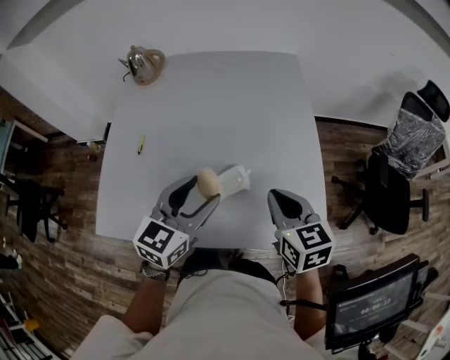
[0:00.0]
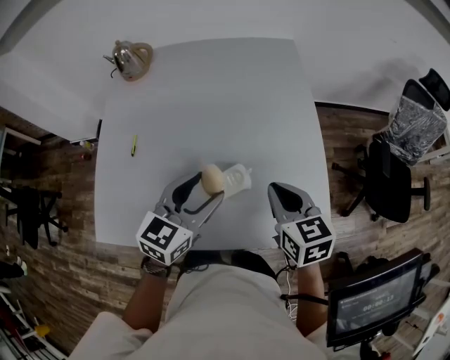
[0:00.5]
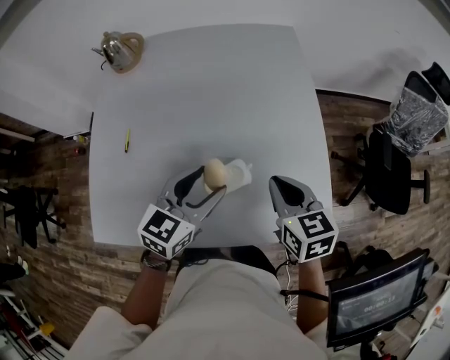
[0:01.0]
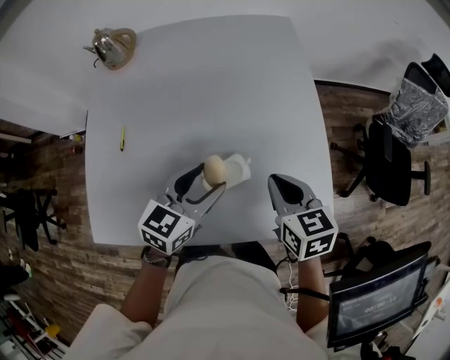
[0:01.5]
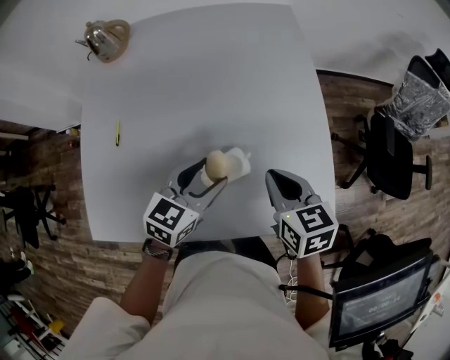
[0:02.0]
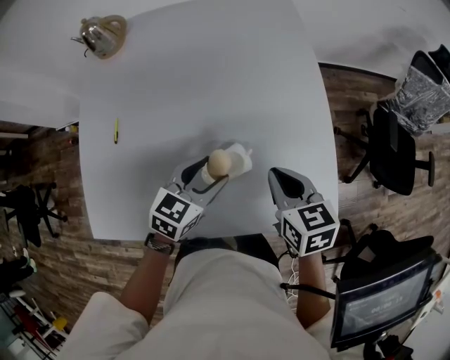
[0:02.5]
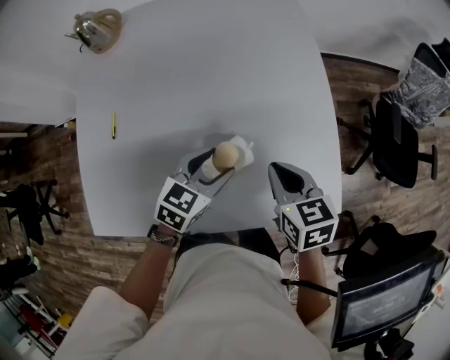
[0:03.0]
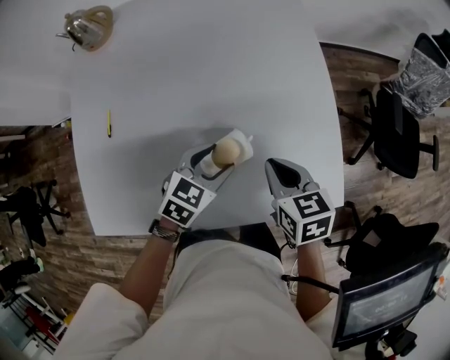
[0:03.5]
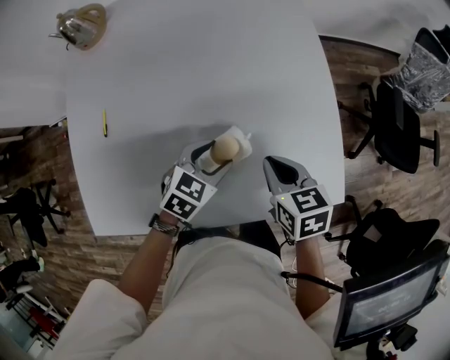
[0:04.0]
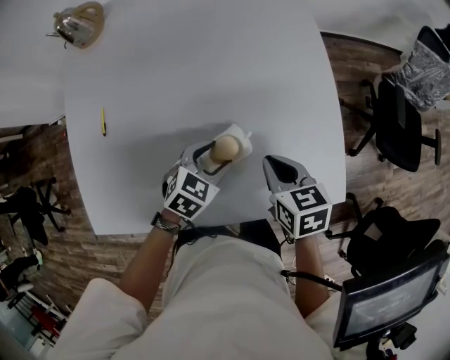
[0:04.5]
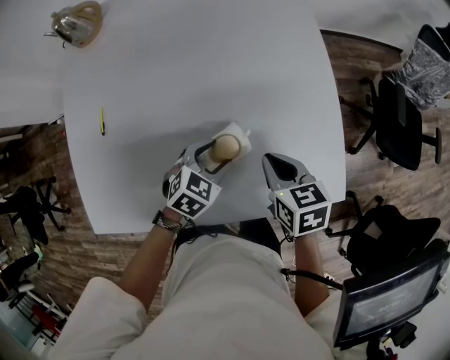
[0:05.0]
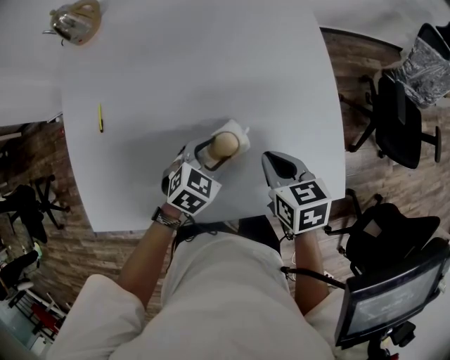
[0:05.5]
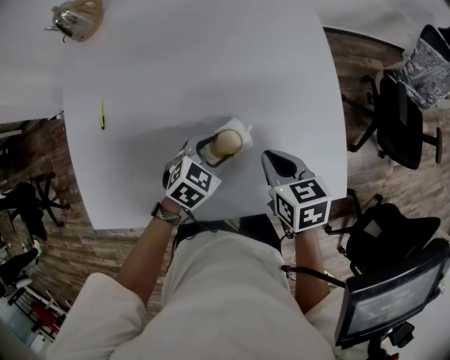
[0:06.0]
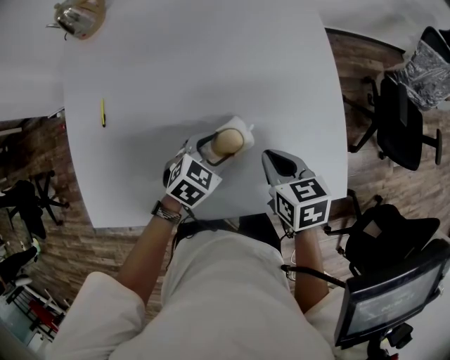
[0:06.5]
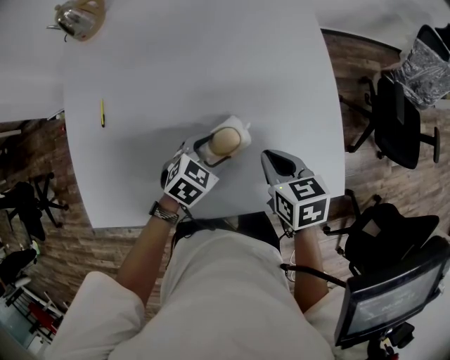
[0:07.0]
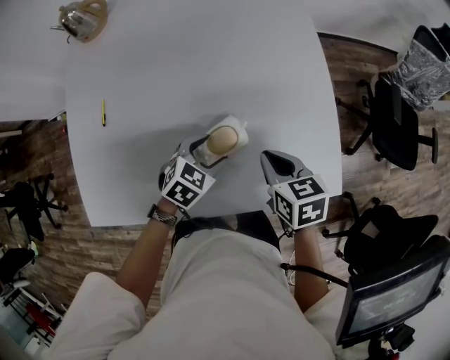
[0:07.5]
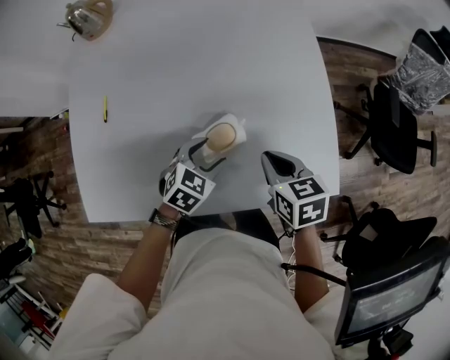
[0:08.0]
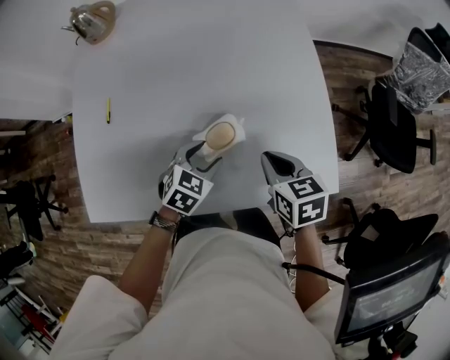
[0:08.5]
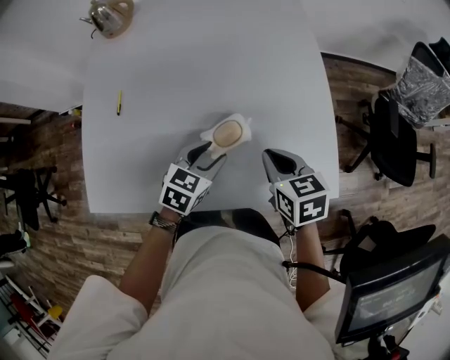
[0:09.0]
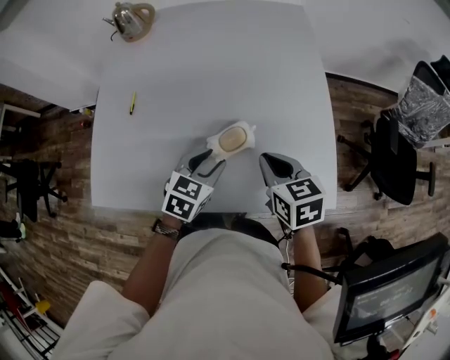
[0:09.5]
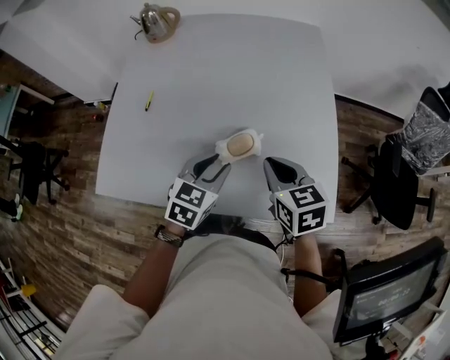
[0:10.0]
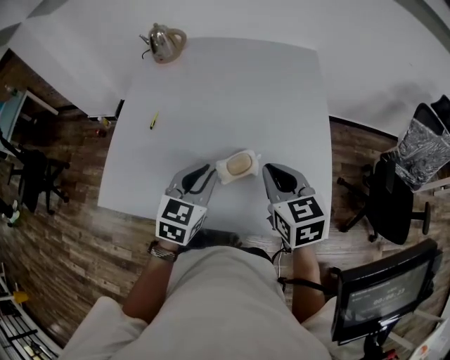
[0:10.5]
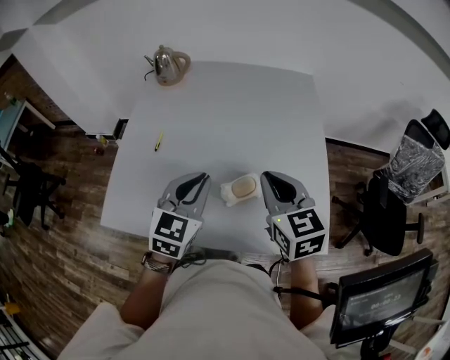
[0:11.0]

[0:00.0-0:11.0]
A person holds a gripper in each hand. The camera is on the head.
0:00.0 to 0:02.0: The right gripper travels downward by approximately 5 cm; the left gripper goes roughly 10 cm downward and forward.
0:02.0 to 0:03.5: The left gripper heads downward, covering roughly 5 cm.
0:03.5 to 0:05.5: The left gripper goes approximately 5 cm downward.
0:05.5 to 0:07.5: The grippers make only small movements.
0:07.5 to 0:09.0: The left gripper heads upward, covering about 5 cm.
0:09.0 to 0:11.0: The grippers both shift upward by about 15 cm. The left gripper turns by about 30 degrees, and closes its fingers. Meanwhile the right gripper turns by about 30 degrees.

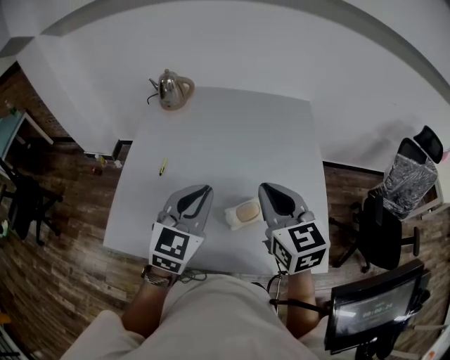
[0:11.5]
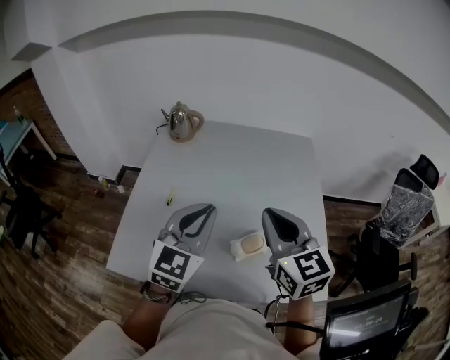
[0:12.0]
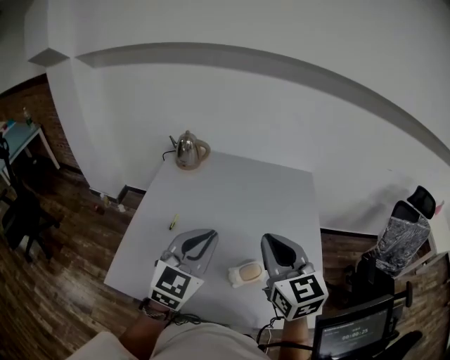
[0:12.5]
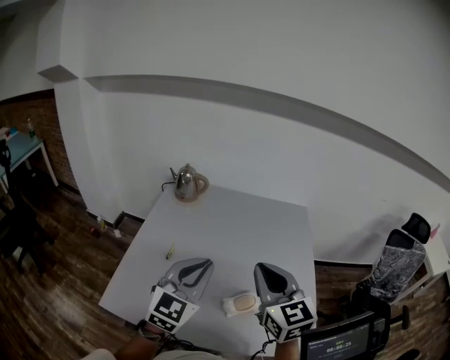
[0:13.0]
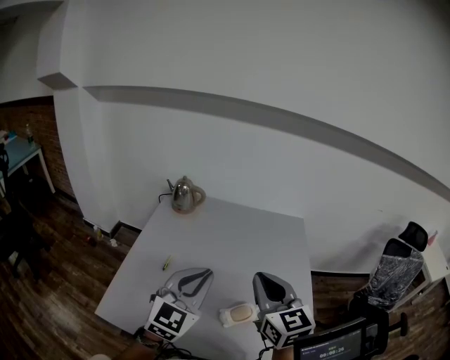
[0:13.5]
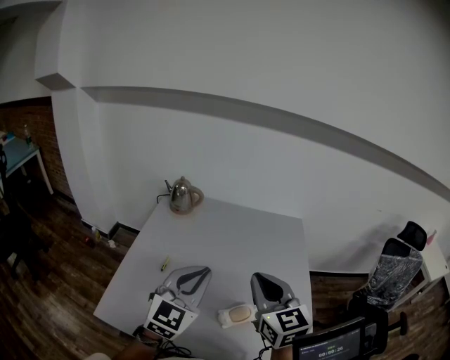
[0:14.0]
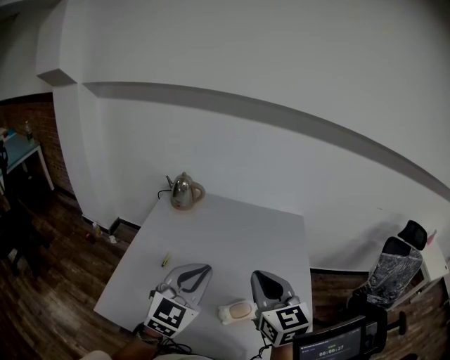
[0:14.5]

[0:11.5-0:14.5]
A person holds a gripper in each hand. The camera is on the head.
0:11.5 to 0:13.0: Both grippers travel together upward, some 5 cm.
0:13.0 to 0:14.5: The grippers make only small movements.

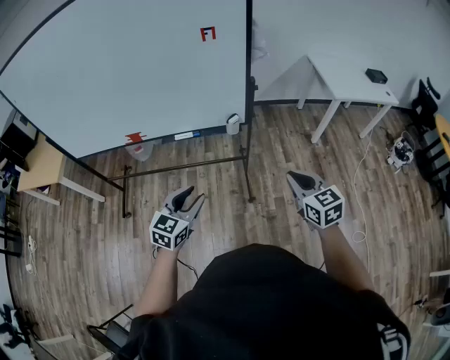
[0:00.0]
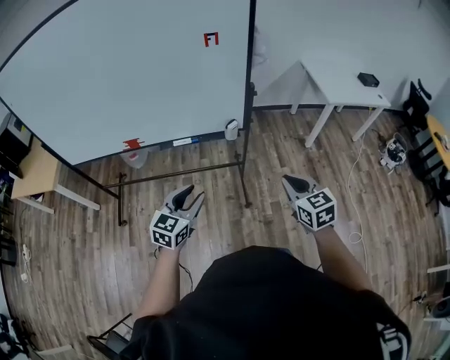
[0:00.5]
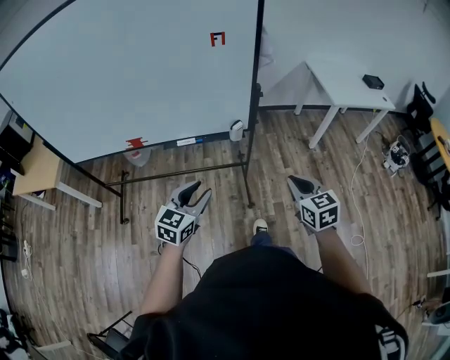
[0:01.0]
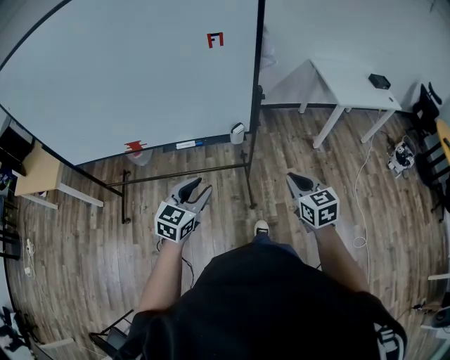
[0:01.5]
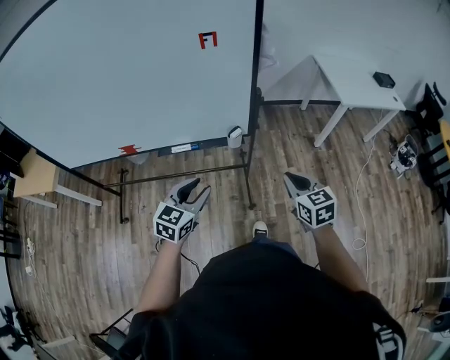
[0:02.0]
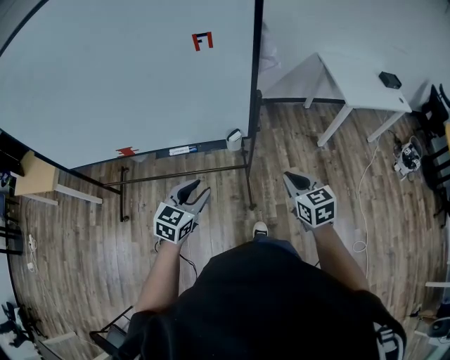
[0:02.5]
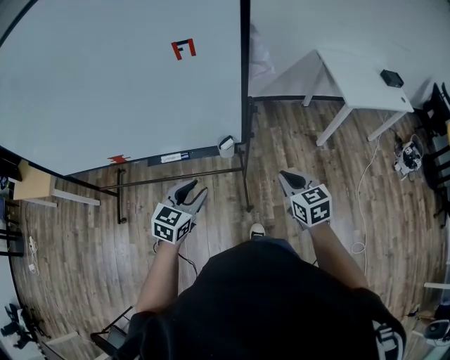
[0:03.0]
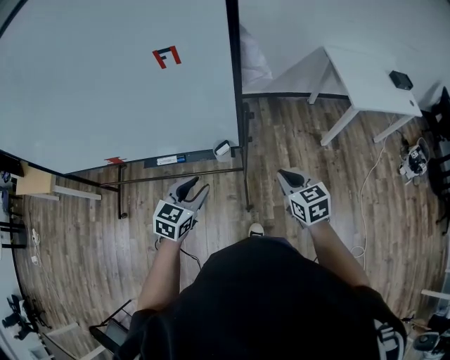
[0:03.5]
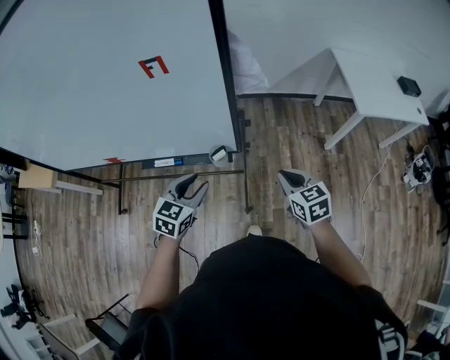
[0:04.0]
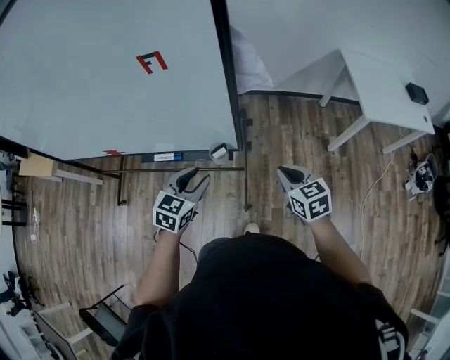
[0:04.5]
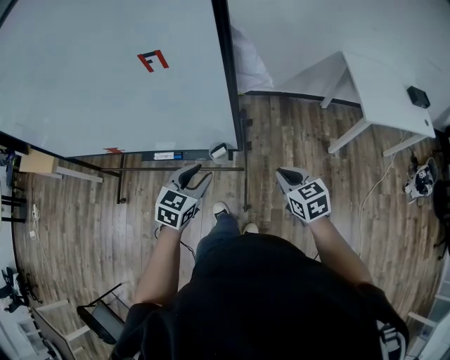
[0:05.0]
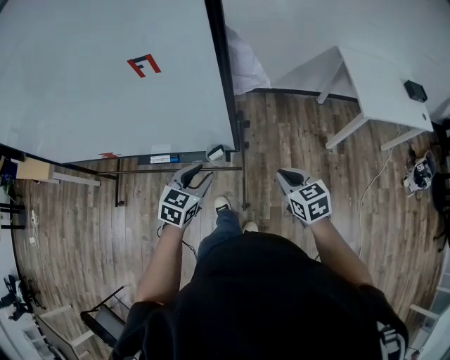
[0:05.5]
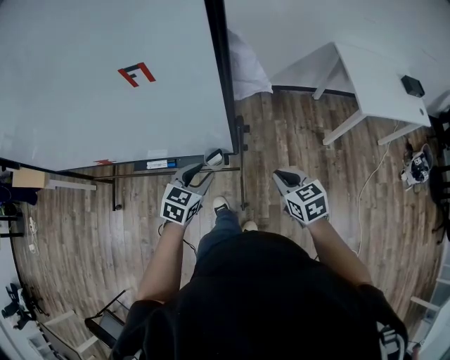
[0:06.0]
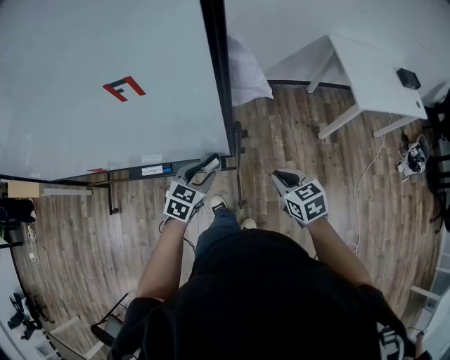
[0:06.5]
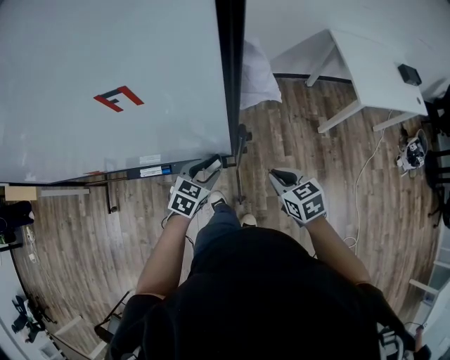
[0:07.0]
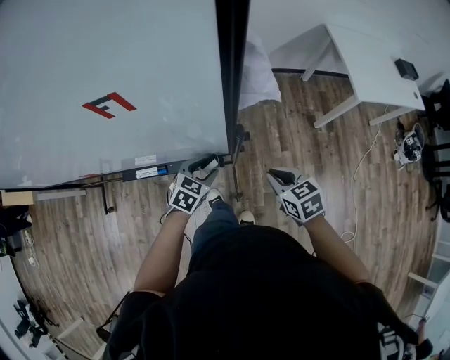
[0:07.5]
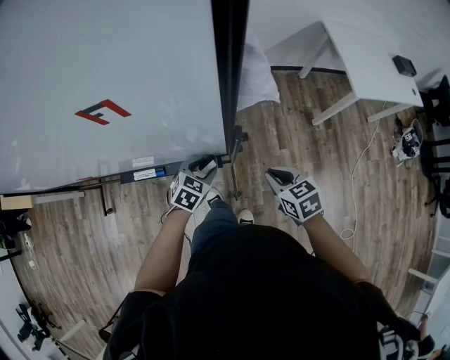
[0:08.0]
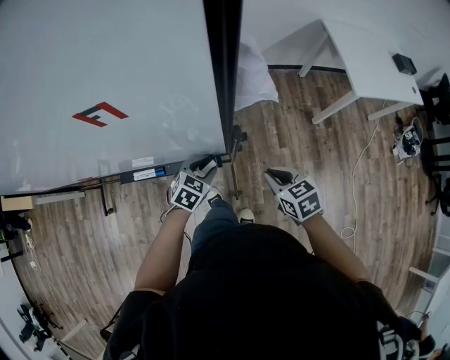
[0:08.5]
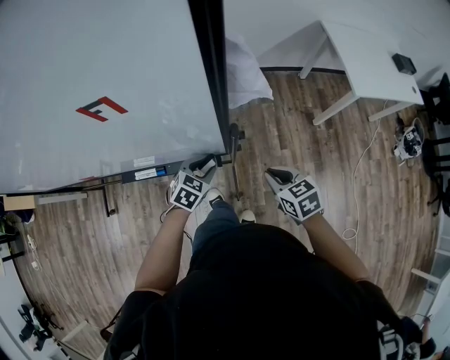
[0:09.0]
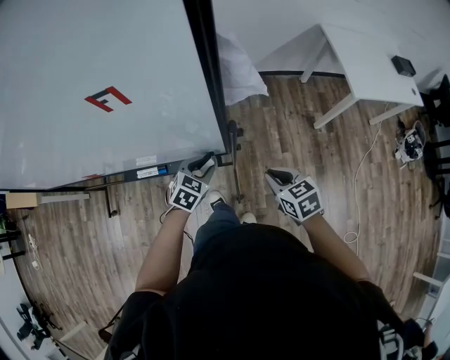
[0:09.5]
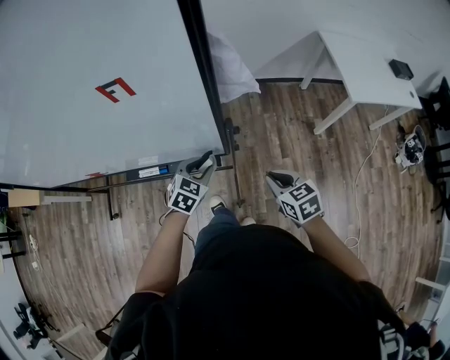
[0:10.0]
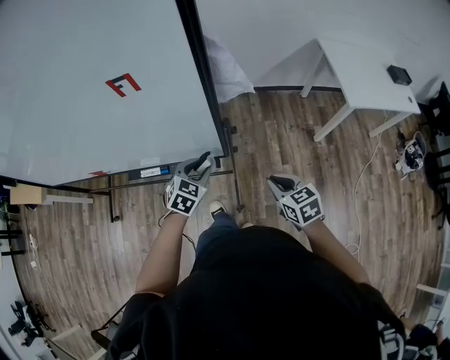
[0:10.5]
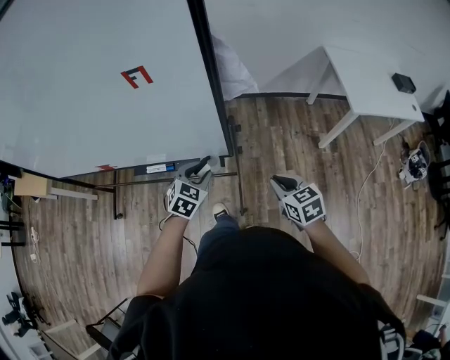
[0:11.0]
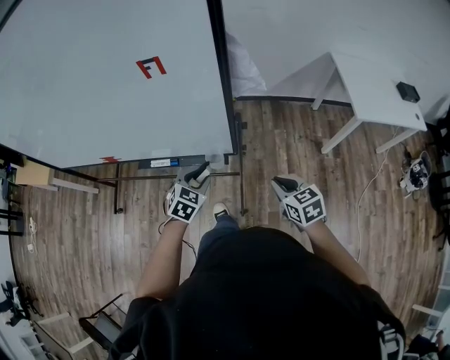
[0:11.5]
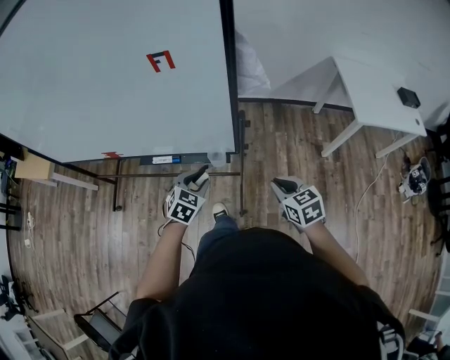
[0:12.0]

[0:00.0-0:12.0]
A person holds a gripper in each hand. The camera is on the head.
0:00.0 to 0:02.0: The grippers both shift forward by some 15 cm.
0:02.0 to 0:04.0: The left gripper travels forward and to the right by roughly 20 cm. The right gripper is displaced forward by some 20 cm.
0:04.0 to 0:06.0: The left gripper goes some 10 cm forward and downward; the right gripper moves about 5 cm.
0:06.0 to 0:08.0: The right gripper moves roughly 5 cm; the left gripper shifts some 15 cm downward and forward.
0:08.0 to 0:10.0: The left gripper heads upward, covering approximately 5 cm.
0:10.0 to 0:12.0: The right gripper is displaced backward by approximately 5 cm; the left gripper shifts roughly 10 cm backward and to the left.

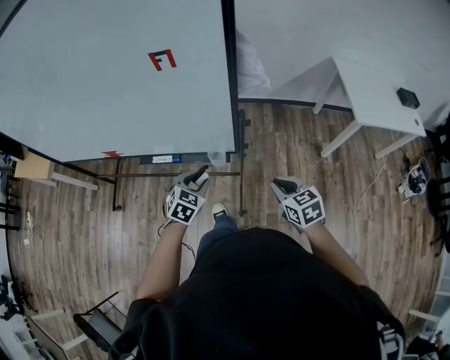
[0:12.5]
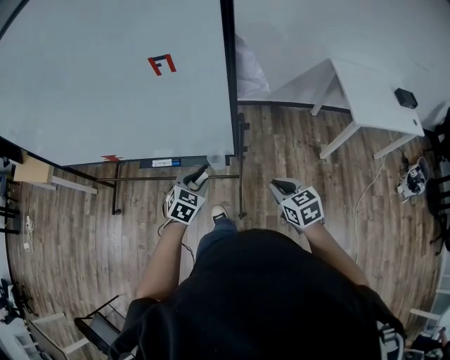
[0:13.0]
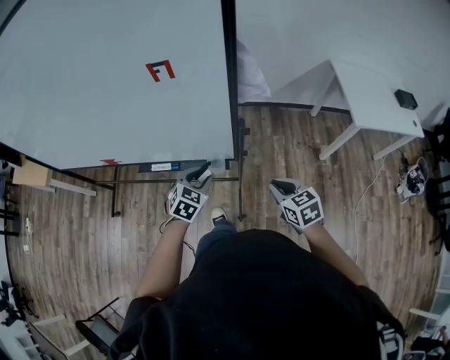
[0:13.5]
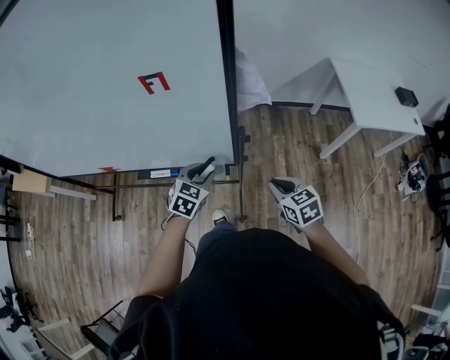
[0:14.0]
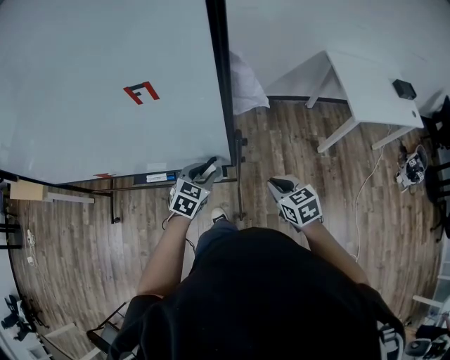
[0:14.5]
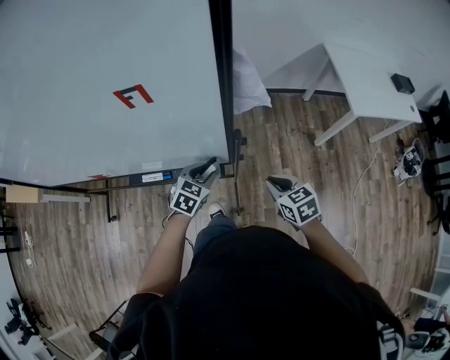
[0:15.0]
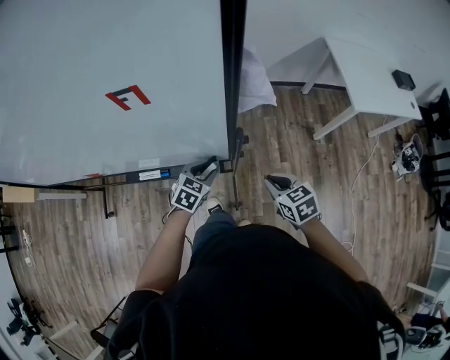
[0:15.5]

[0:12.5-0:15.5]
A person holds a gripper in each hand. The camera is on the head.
0:12.5 to 0:14.0: Both grippers travel together forward, some 5 cm.
0:14.0 to 0:15.5: The left gripper heads downward, covering roughly 10 cm.
